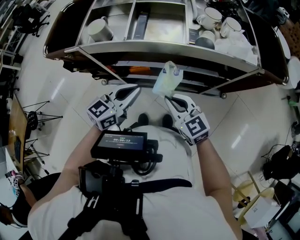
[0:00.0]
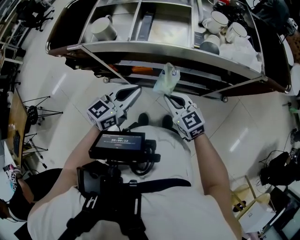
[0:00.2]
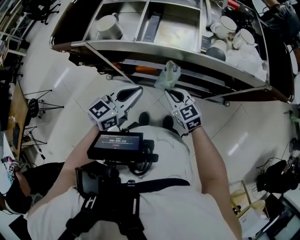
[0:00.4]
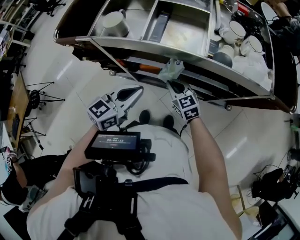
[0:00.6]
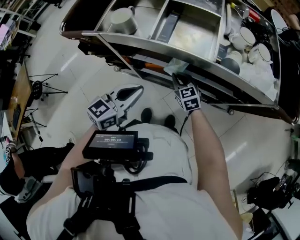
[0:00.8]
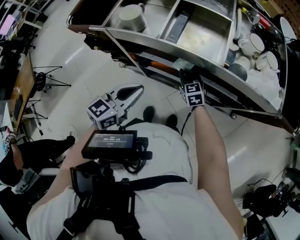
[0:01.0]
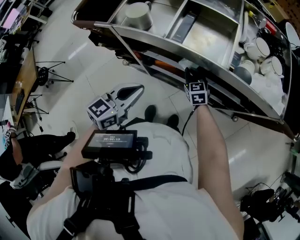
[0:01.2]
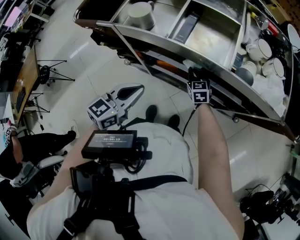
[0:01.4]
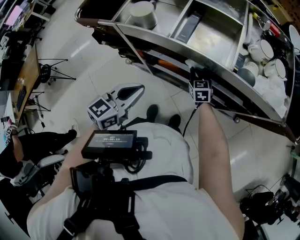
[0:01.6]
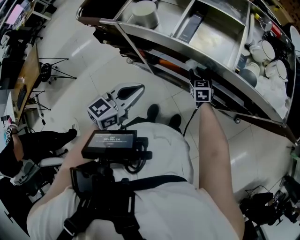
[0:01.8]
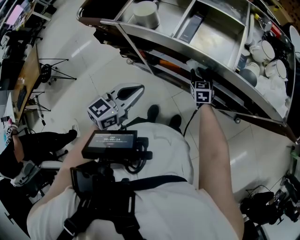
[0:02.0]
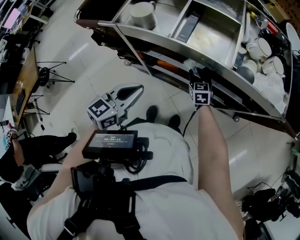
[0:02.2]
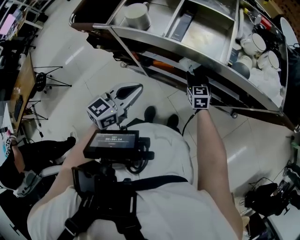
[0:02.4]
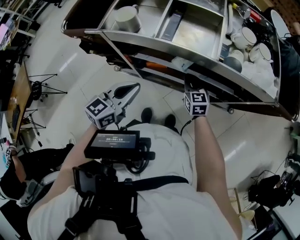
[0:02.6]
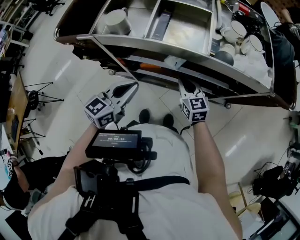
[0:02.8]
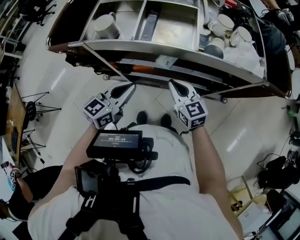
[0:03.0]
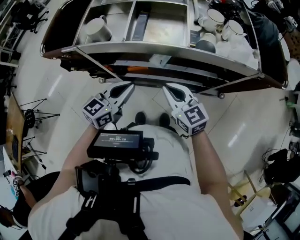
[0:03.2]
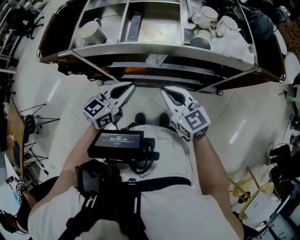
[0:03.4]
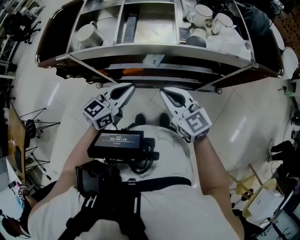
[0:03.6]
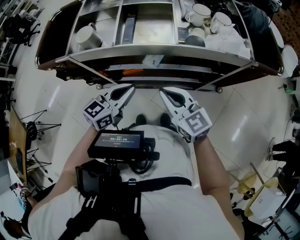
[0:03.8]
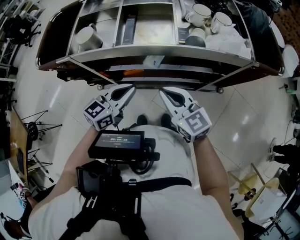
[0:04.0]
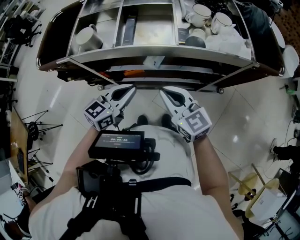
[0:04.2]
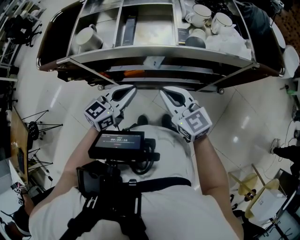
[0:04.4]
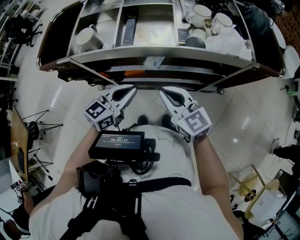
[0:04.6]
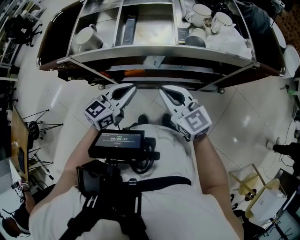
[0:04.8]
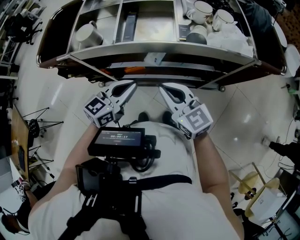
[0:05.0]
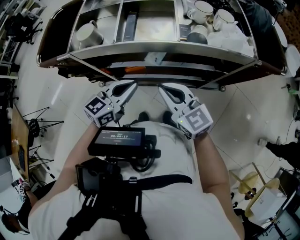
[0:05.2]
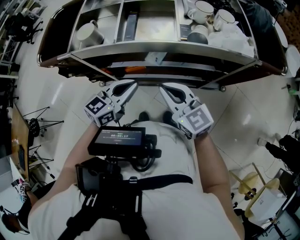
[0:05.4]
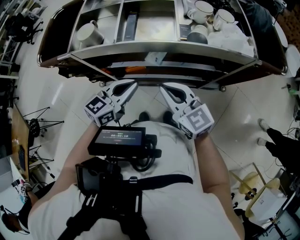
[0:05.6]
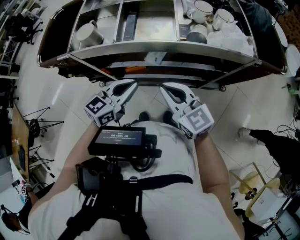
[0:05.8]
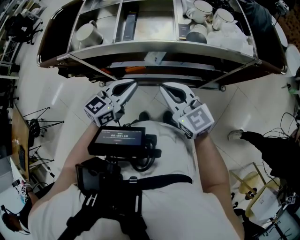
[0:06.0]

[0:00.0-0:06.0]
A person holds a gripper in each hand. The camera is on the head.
0.0 to 1.6 s: The right gripper is displaced forward and downward by about 25 cm, while the left gripper is displaced to the left by roughly 10 cm.
1.6 to 3.0 s: The left gripper ends up about 5 cm from where it was. Meanwhile the right gripper moves upward and backward, roughly 20 cm, and opens, then closes again.
3.0 to 4.4 s: The left gripper heads to the right, covering some 5 cm. Meanwhile the right gripper goes approximately 10 cm upward.
4.4 to 6.0 s: Both grippers stay put.

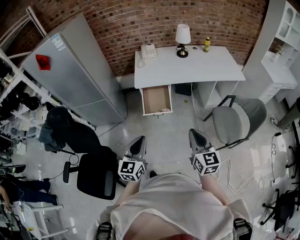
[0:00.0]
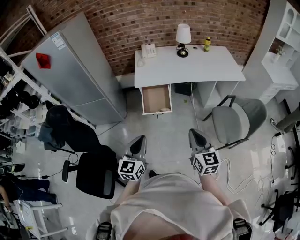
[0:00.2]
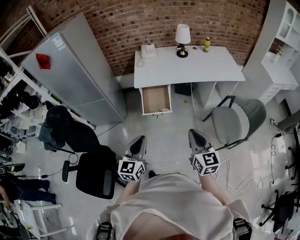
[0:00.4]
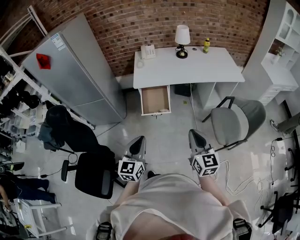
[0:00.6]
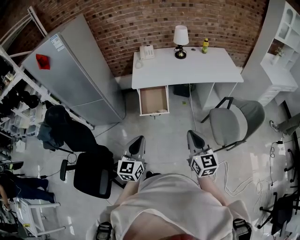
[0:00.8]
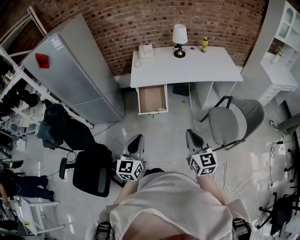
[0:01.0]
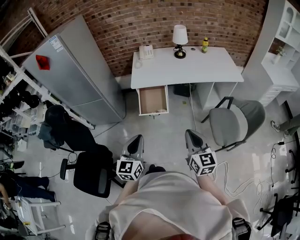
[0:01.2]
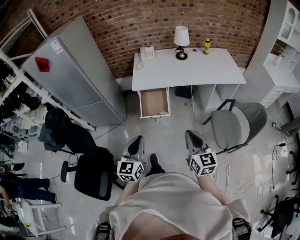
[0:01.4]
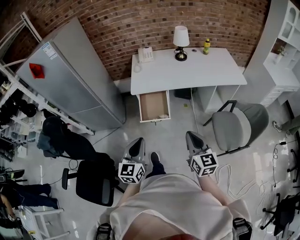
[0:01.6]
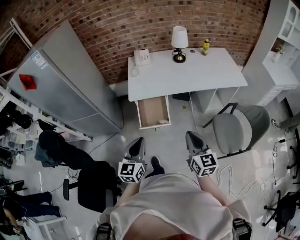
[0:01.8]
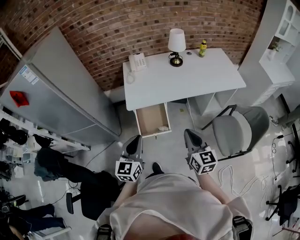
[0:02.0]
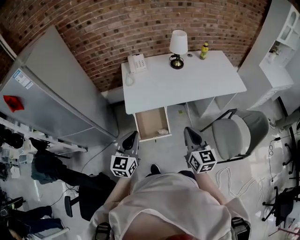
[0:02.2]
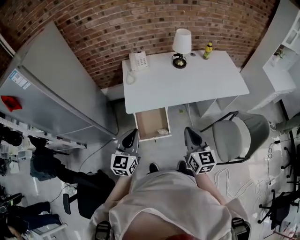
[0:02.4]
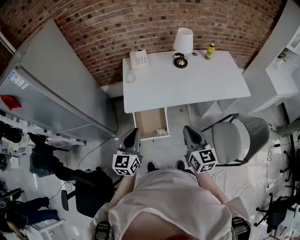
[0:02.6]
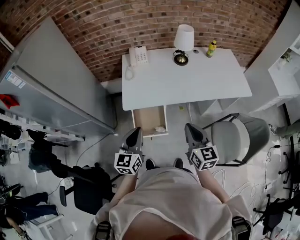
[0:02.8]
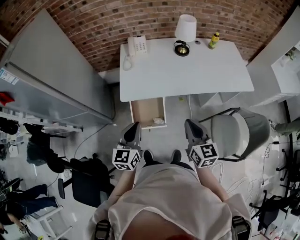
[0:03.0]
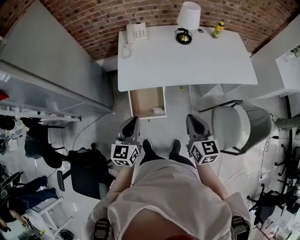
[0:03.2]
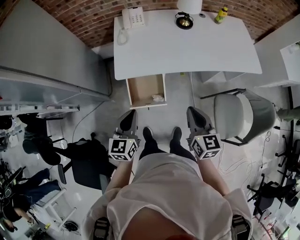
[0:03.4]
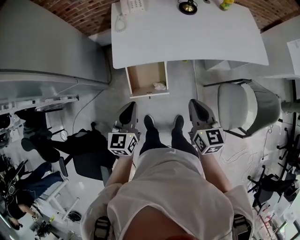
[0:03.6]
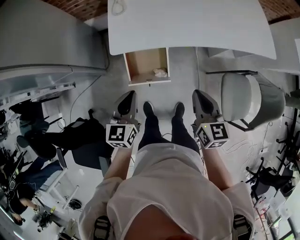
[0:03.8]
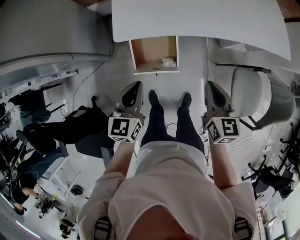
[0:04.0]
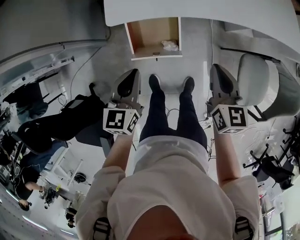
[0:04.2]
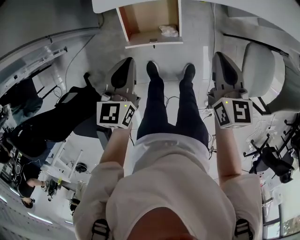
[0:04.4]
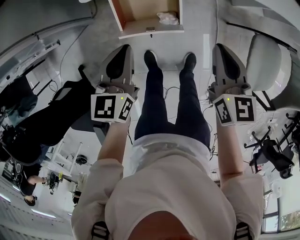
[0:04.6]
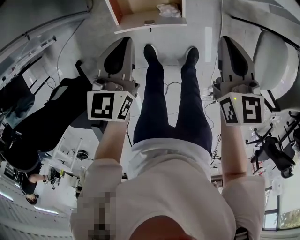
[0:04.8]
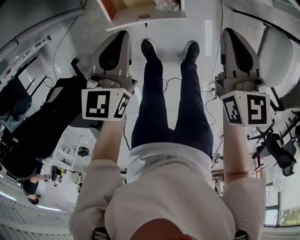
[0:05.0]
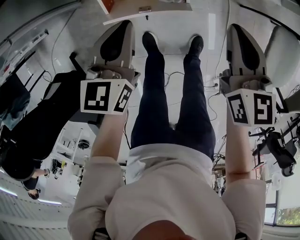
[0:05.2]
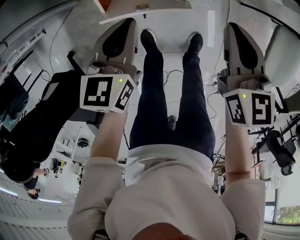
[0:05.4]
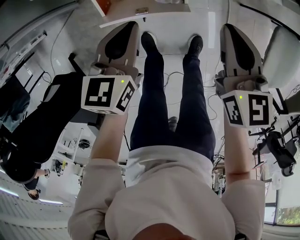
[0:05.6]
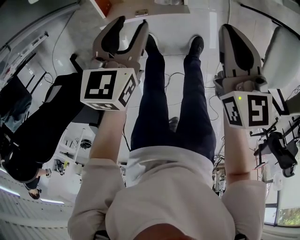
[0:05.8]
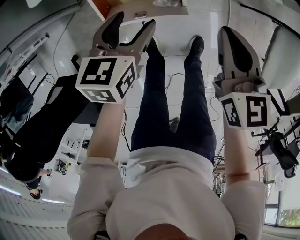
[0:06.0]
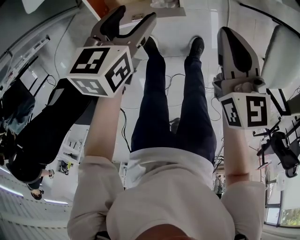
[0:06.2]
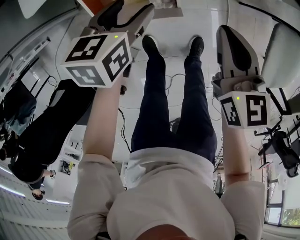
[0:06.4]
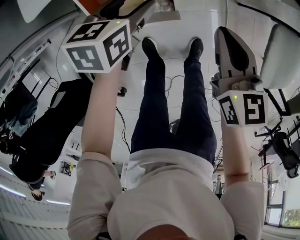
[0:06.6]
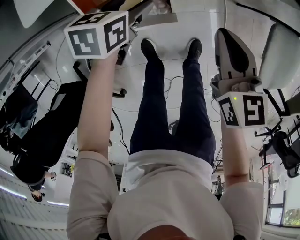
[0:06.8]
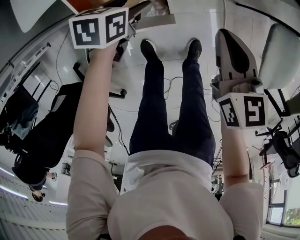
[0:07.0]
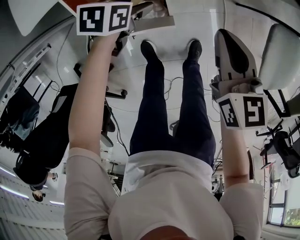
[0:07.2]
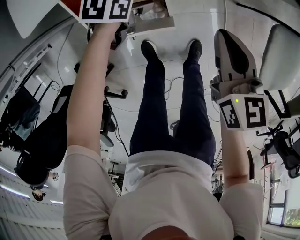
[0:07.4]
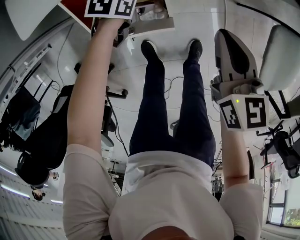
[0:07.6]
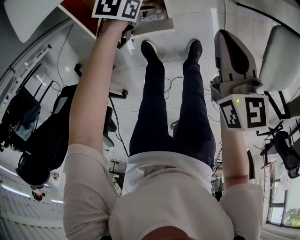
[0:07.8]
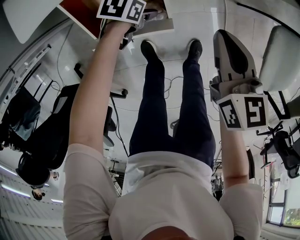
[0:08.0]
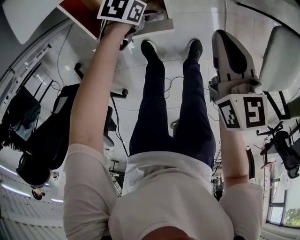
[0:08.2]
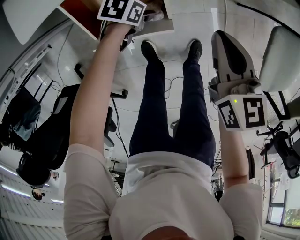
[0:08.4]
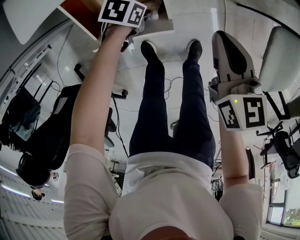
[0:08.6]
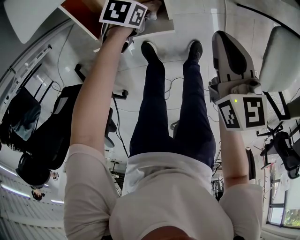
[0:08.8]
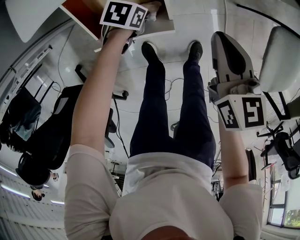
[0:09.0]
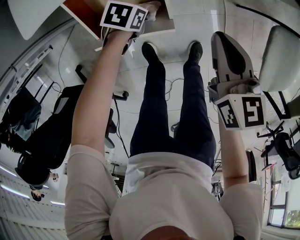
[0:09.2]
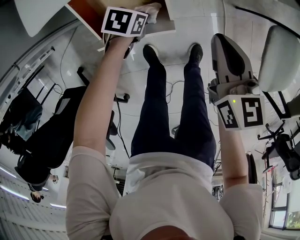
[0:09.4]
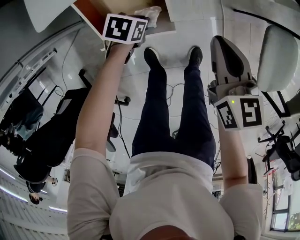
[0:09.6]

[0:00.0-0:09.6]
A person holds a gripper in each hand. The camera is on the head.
0.0 to 1.6 s: Both grippers travel together forward, roughly 5 cm.
1.6 to 3.2 s: Both grippers move forward, approximately 25 cm.
3.2 to 4.8 s: Both grippers move downward, some 25 cm.
4.8 to 6.4 s: The left gripper travels downward, forward and to the right by some 15 cm, turns by some 20 degrees, and opens its fingers, while the right gripper shifts some 10 cm downward.
6.4 to 8.0 s: The left gripper travels downward by approximately 15 cm, and rotates some 30 degrees.
8.0 to 9.6 s: The left gripper closes up.

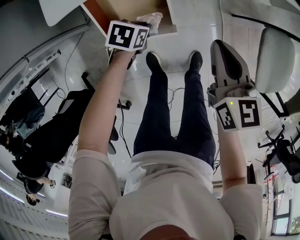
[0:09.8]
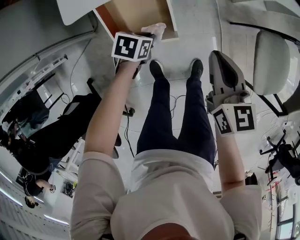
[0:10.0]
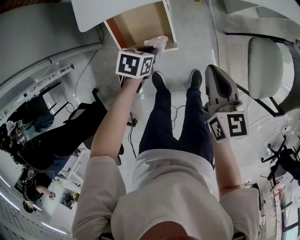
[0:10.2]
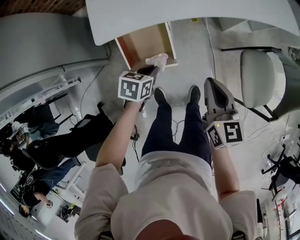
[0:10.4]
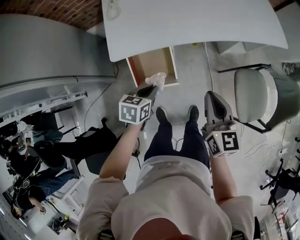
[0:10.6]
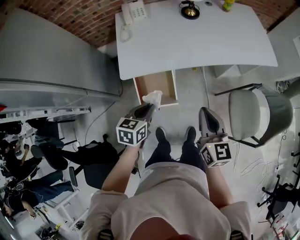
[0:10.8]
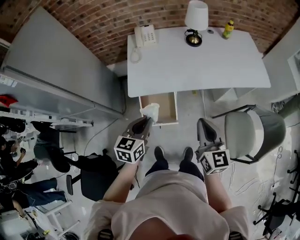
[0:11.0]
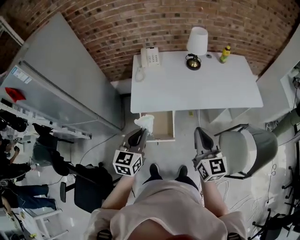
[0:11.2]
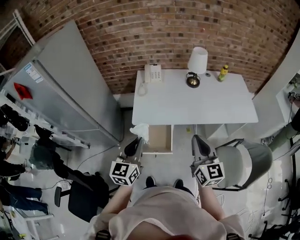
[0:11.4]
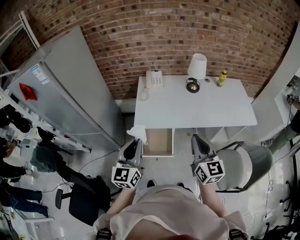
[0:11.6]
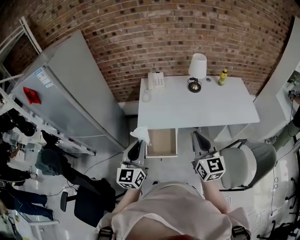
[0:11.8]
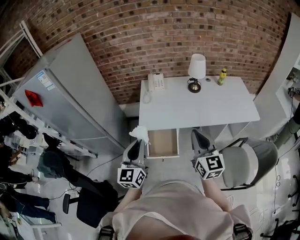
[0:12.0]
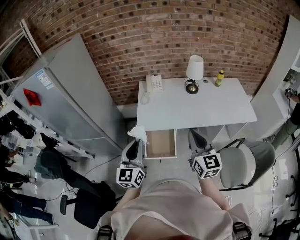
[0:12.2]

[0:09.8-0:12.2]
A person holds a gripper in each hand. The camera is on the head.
9.8 to 11.0 s: Both grippers move upward, roughly 40 cm. The left gripper points its fingers approximately 40 degrees further upward. Meanwhile the right gripper turns by approximately 20 degrees.
11.0 to 12.2 s: The left gripper heads upward, to the left and backward, covering about 20 cm, and points its fingers some 30 degrees further upward. The right gripper is displaced upward and to the left by some 15 cm.

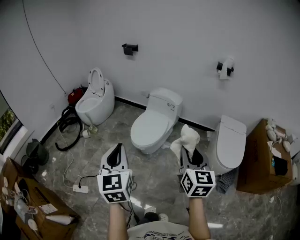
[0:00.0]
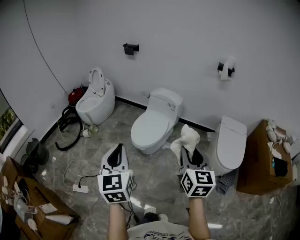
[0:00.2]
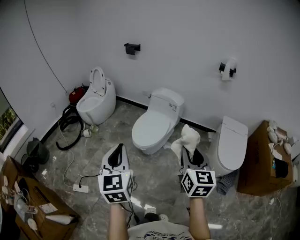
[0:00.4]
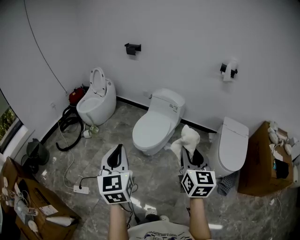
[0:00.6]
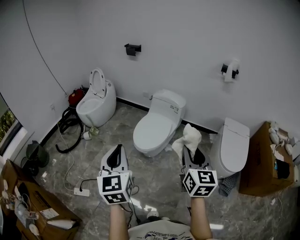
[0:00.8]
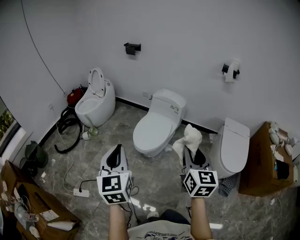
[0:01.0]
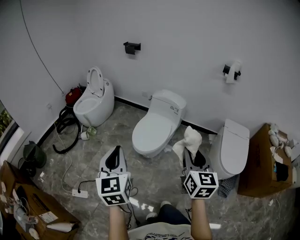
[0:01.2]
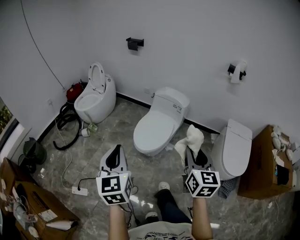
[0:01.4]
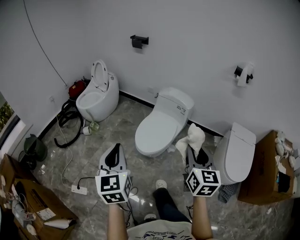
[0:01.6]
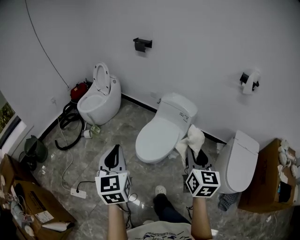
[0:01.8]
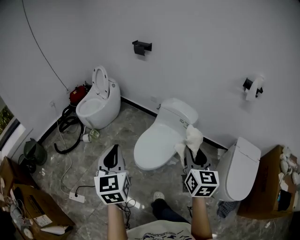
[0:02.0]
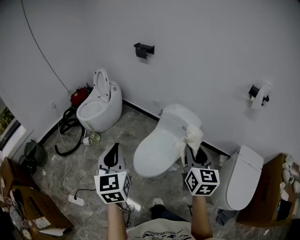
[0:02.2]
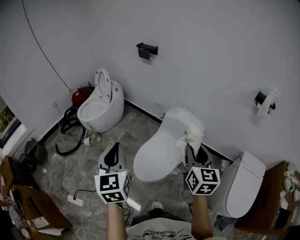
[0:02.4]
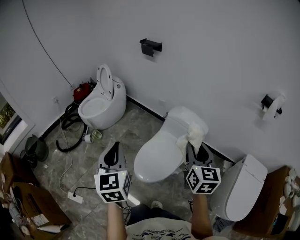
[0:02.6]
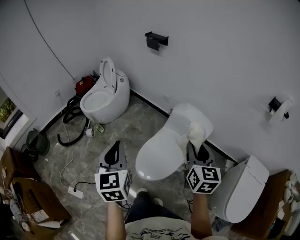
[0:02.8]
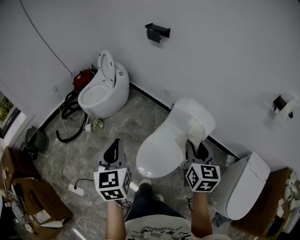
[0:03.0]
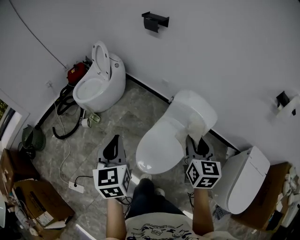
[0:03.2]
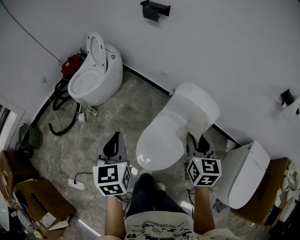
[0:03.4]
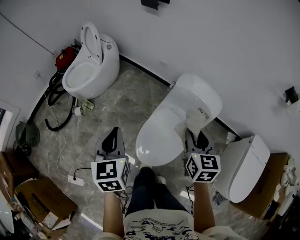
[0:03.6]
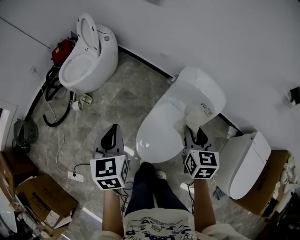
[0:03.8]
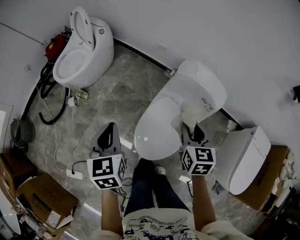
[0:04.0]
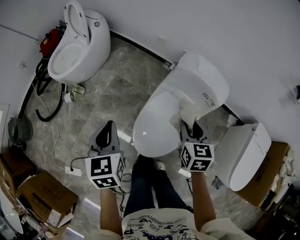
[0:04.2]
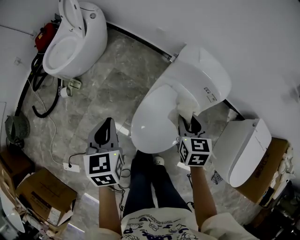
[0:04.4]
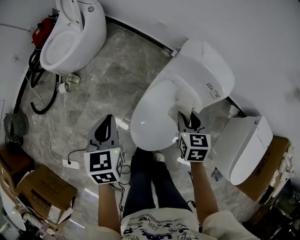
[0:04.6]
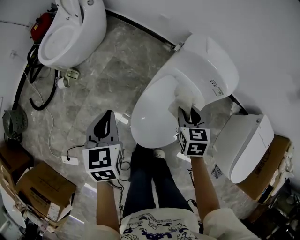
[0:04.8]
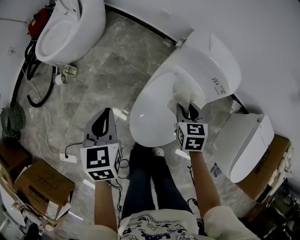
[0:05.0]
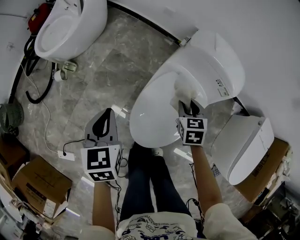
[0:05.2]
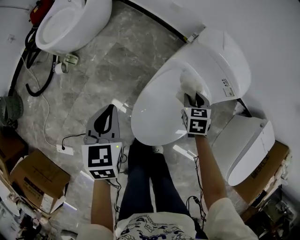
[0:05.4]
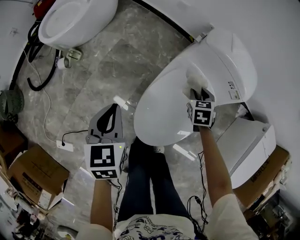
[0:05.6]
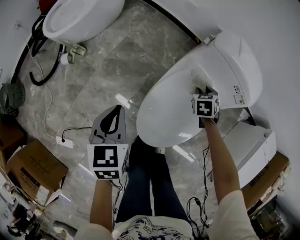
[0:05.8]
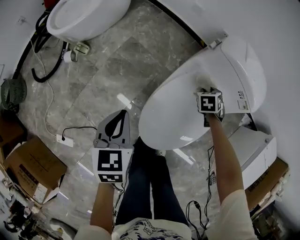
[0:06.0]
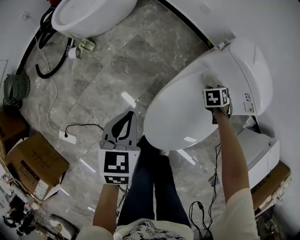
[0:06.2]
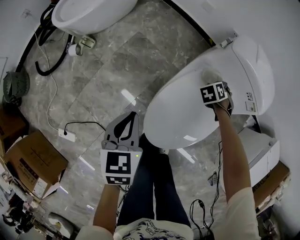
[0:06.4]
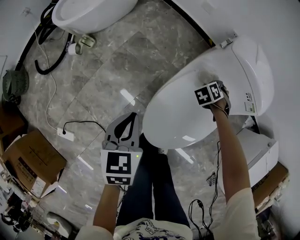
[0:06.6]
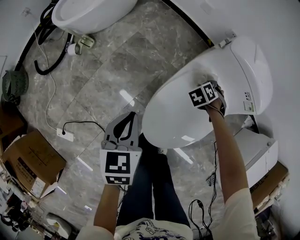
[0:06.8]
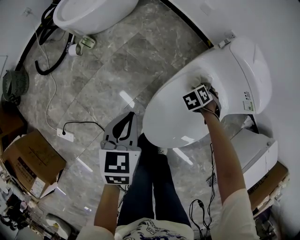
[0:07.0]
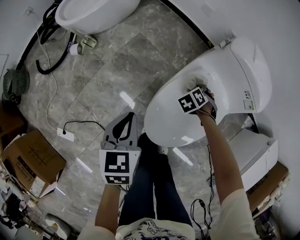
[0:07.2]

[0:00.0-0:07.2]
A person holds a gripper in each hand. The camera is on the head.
0.0 to 1.4 s: The right gripper moves forward, roughly 10 cm; the left gripper travels forward and to the left by approximately 10 cm.
1.4 to 2.8 s: The two grippers go some 40 cm forward.
2.8 to 4.4 s: The grippers both shift downward and forward by some 30 cm. The left gripper changes its angle by approximately 20 degrees. The right gripper turns by about 30 degrees.
4.4 to 5.8 s: The right gripper travels downward and forward by roughly 25 cm, and swivels about 30 degrees, while the left gripper shifts some 15 cm downward.
5.8 to 7.2 s: The right gripper heads to the left and backward, covering approximately 10 cm, and turns by roughly 30 degrees. The left gripper moves roughly 5 cm.
